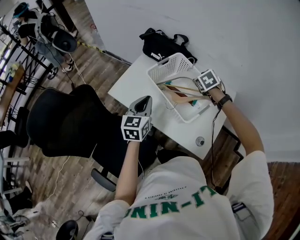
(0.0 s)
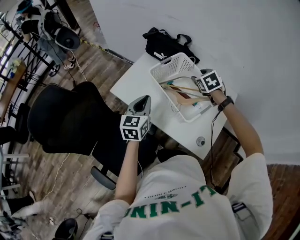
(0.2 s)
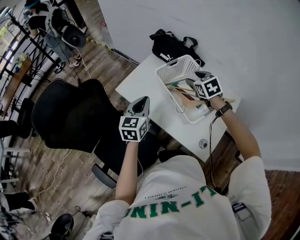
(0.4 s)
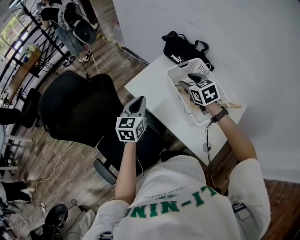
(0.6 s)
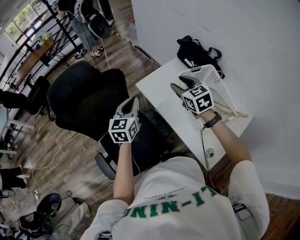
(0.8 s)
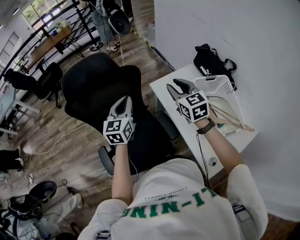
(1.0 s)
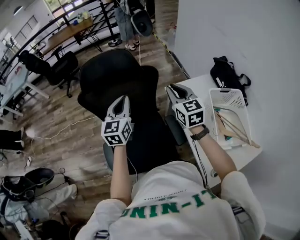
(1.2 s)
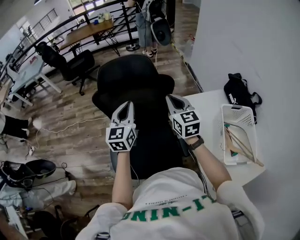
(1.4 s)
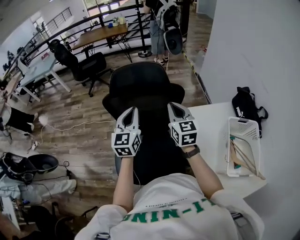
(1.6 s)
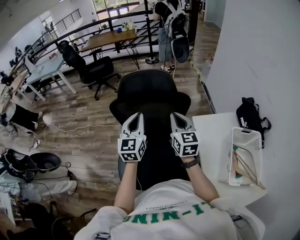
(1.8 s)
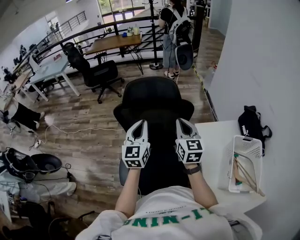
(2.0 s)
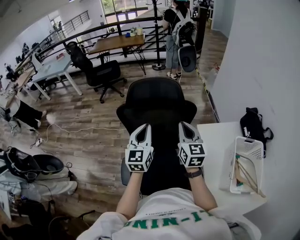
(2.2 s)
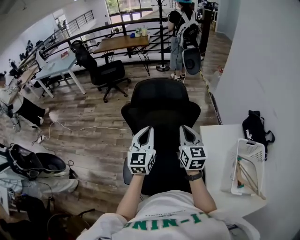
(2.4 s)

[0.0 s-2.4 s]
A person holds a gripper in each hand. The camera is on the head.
0.0 to 1.2 s: The left gripper moves about 40 cm, and swivels approximately 50 degrees. The right gripper shifts by some 50 cm, angles its fingers upward, by about 40 degrees, and closes its fingers.
1.2 to 2.4 s: The two grippers go roughly 10 cm to the left.

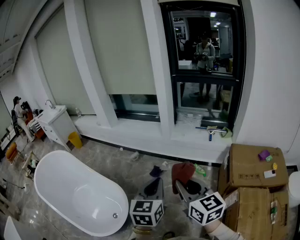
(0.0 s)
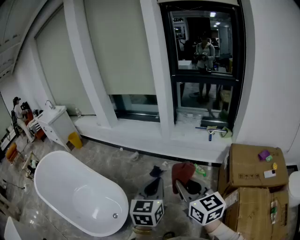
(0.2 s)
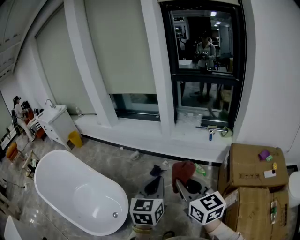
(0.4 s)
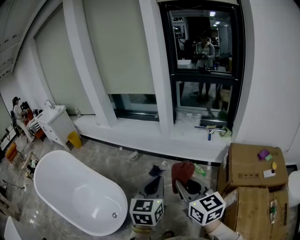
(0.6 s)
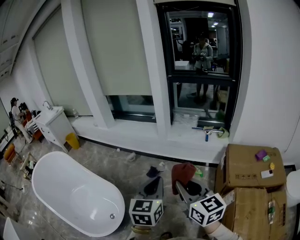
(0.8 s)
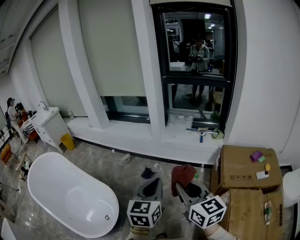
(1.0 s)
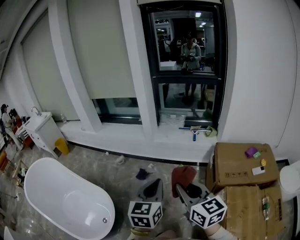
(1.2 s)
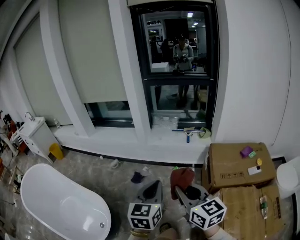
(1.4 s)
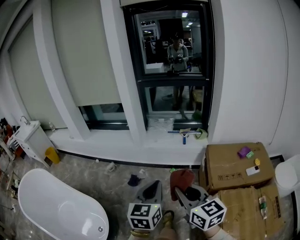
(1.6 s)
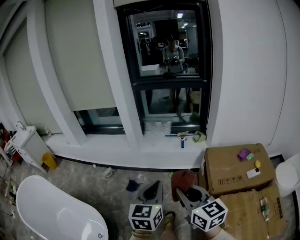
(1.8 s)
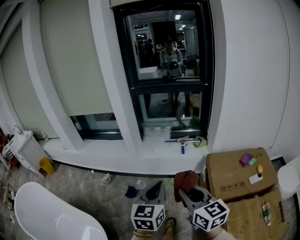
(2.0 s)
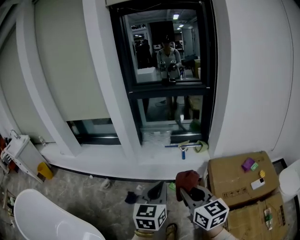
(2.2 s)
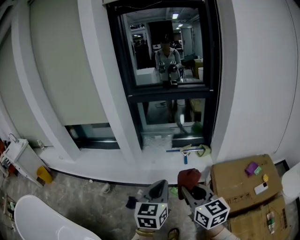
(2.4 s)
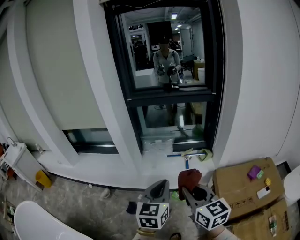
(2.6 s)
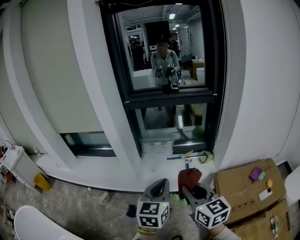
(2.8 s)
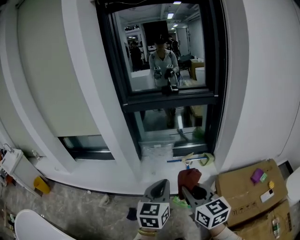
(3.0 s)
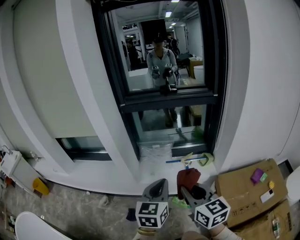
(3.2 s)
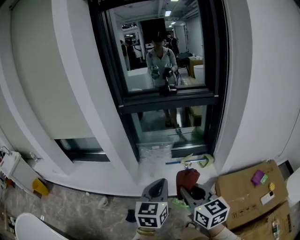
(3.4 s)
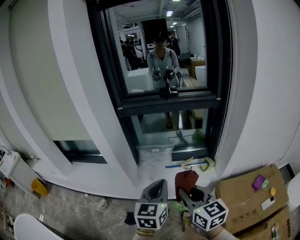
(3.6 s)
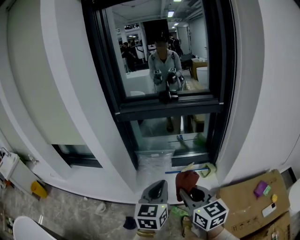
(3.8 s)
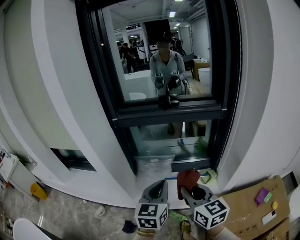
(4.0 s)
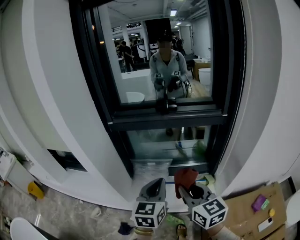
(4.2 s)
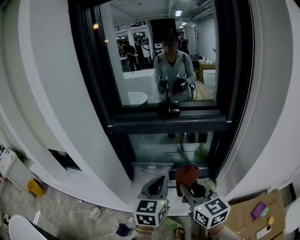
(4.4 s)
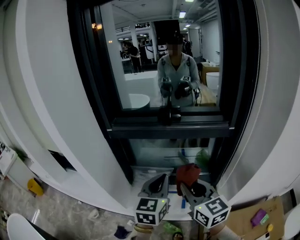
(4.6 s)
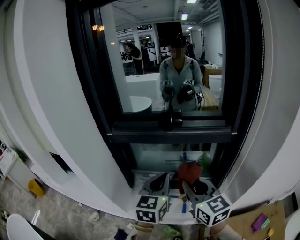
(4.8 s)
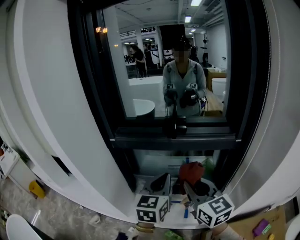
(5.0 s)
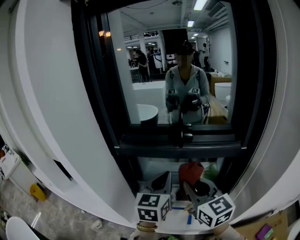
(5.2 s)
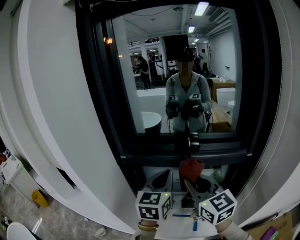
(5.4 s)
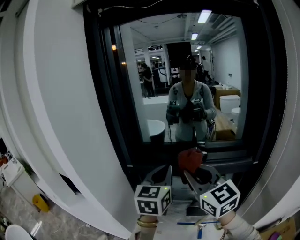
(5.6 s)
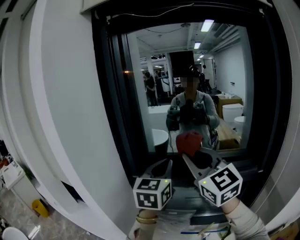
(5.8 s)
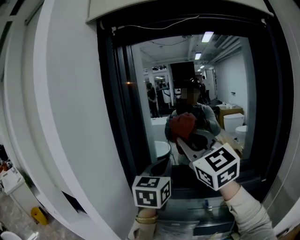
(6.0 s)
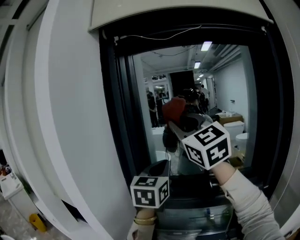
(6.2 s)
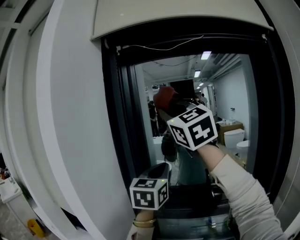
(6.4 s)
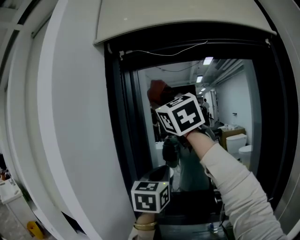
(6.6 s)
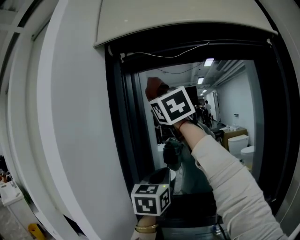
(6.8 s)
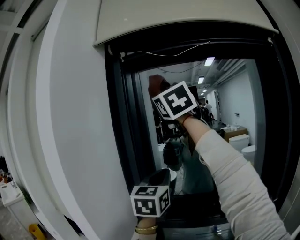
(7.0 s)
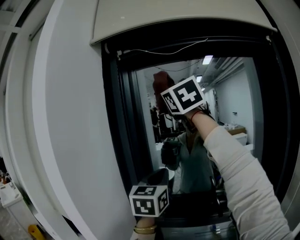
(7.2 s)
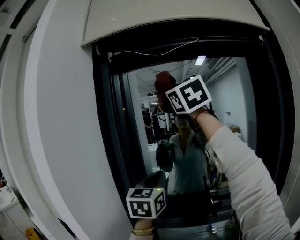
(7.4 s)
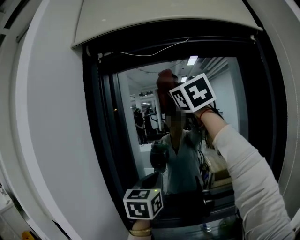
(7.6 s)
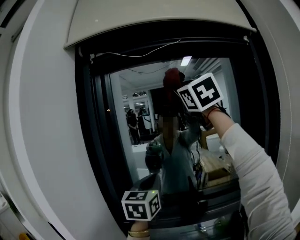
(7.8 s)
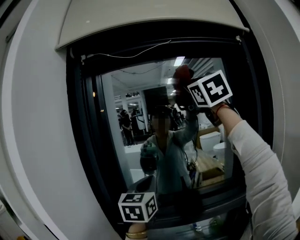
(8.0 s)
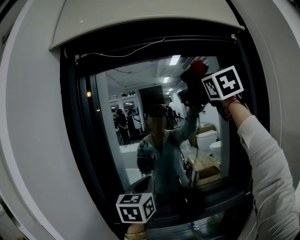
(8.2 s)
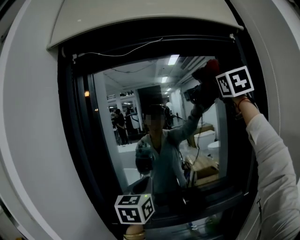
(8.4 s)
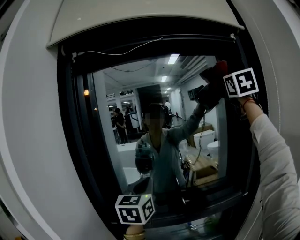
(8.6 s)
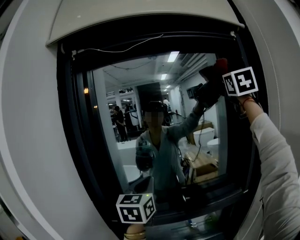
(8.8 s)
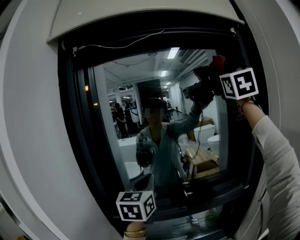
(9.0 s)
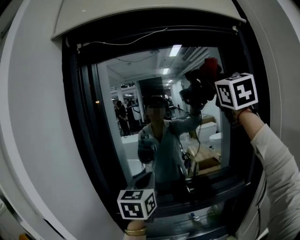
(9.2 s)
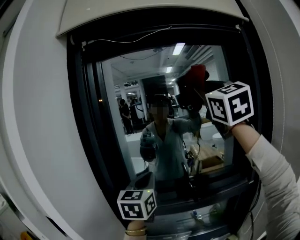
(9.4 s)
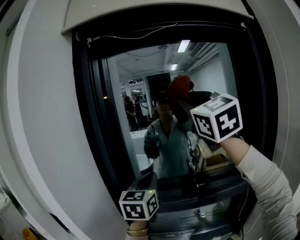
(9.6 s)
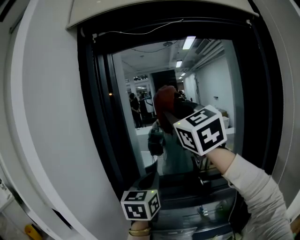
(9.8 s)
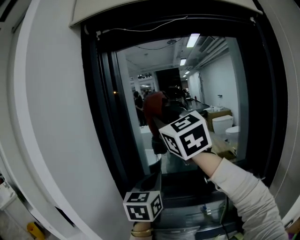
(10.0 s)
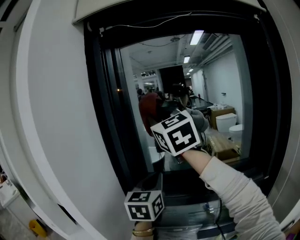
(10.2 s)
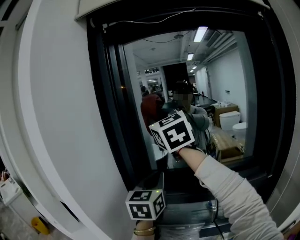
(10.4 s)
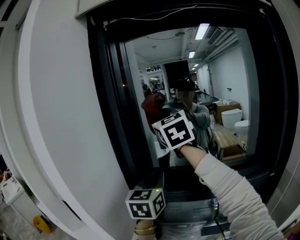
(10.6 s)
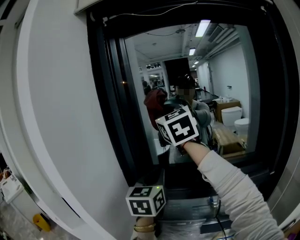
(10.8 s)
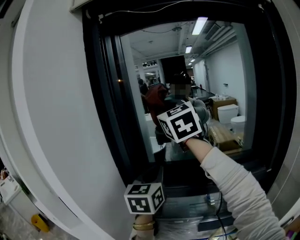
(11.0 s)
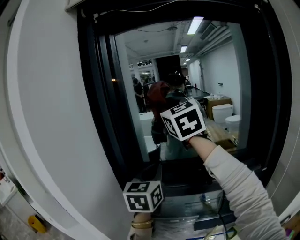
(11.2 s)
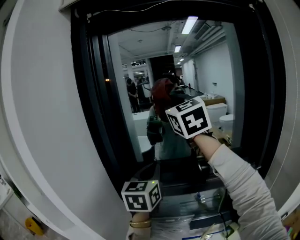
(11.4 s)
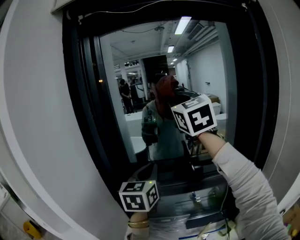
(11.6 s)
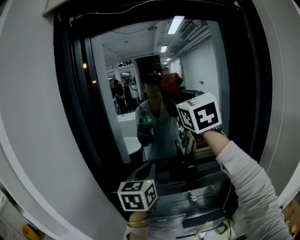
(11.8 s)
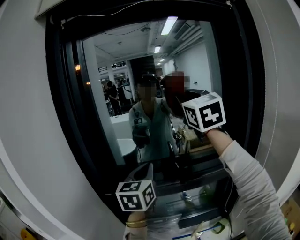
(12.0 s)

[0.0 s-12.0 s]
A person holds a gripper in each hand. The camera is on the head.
0.0 to 1.6 s: The grippers both shift to the right by about 15 cm.
1.6 to 3.0 s: Both grippers move forward, some 40 cm.
3.0 to 4.4 s: The grippers both shift forward by some 25 cm.
4.4 to 6.0 s: The right gripper travels upward and forward by approximately 40 cm, and rotates about 40 degrees, while the left gripper heads forward and upward, covering approximately 35 cm.
6.0 to 7.6 s: The left gripper shifts some 10 cm forward and upward. The right gripper travels upward and forward by roughly 25 cm.
7.6 to 9.0 s: The right gripper shifts about 30 cm to the right, and changes its angle by approximately 30 degrees; the left gripper ends up about 5 cm from where it was.
9.0 to 10.4 s: The right gripper is displaced to the left and downward by about 40 cm, and swivels some 40 degrees; the left gripper heads to the left and downward, covering approximately 10 cm.
10.4 to 12.0 s: The right gripper heads to the right, covering about 25 cm, and turns by approximately 20 degrees. The left gripper moves to the right, about 10 cm.

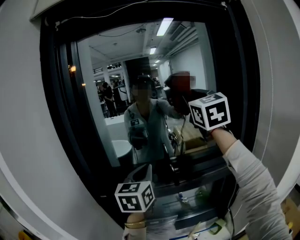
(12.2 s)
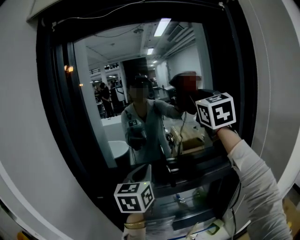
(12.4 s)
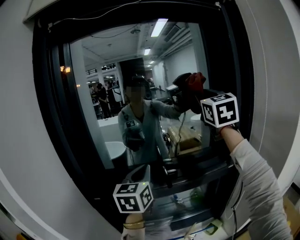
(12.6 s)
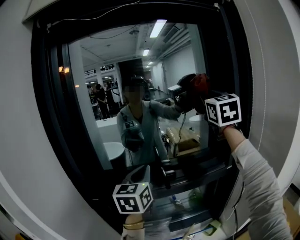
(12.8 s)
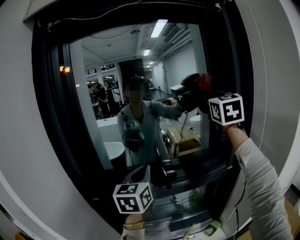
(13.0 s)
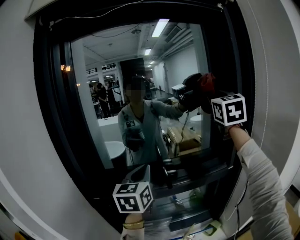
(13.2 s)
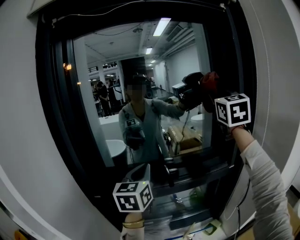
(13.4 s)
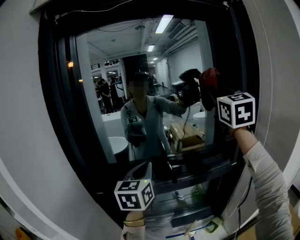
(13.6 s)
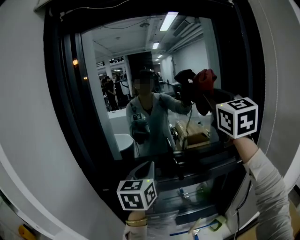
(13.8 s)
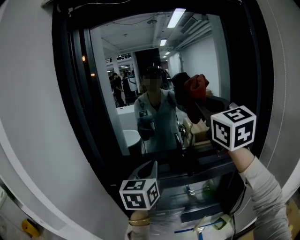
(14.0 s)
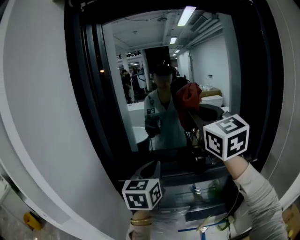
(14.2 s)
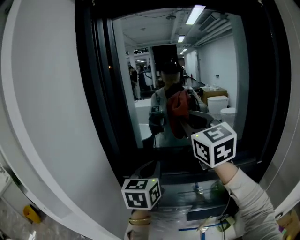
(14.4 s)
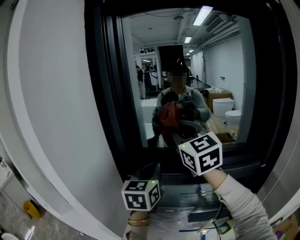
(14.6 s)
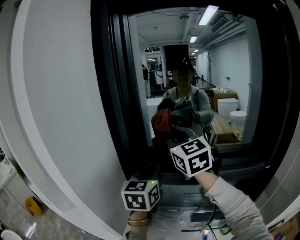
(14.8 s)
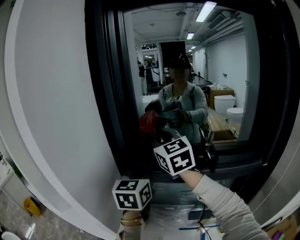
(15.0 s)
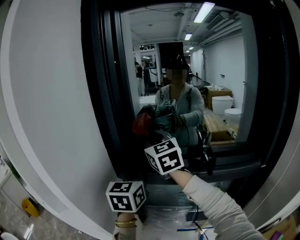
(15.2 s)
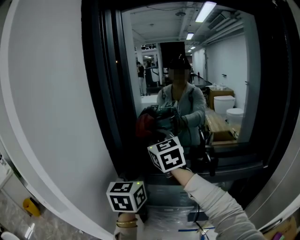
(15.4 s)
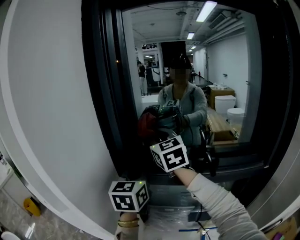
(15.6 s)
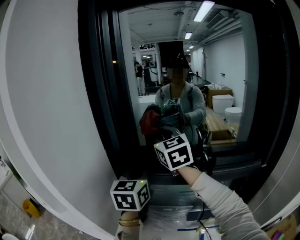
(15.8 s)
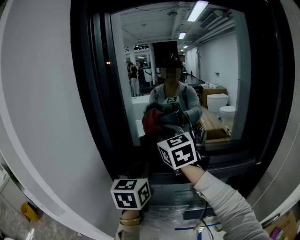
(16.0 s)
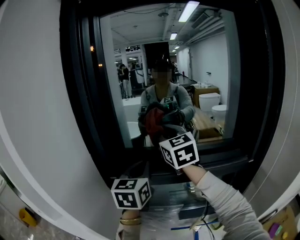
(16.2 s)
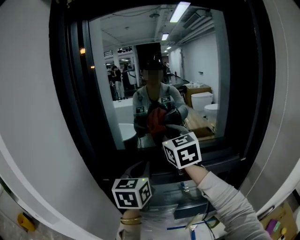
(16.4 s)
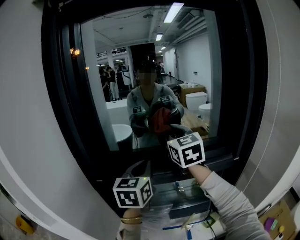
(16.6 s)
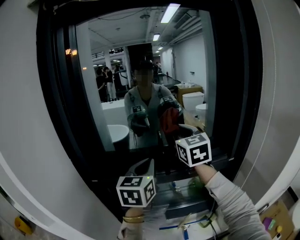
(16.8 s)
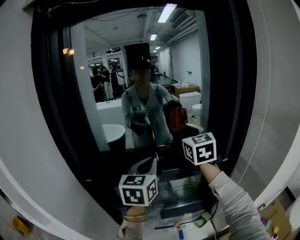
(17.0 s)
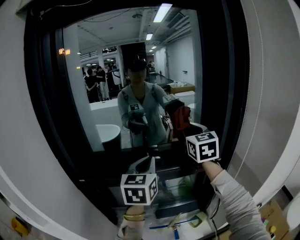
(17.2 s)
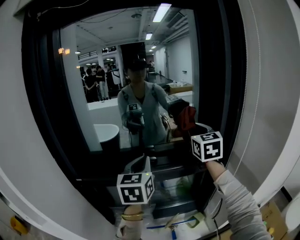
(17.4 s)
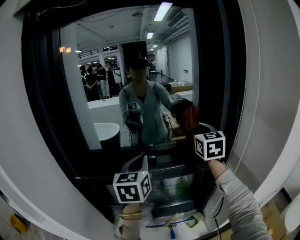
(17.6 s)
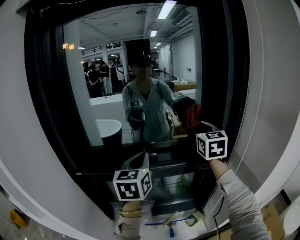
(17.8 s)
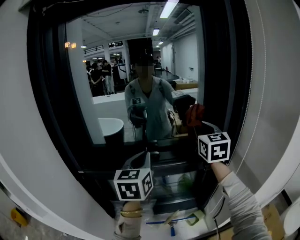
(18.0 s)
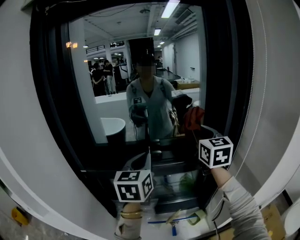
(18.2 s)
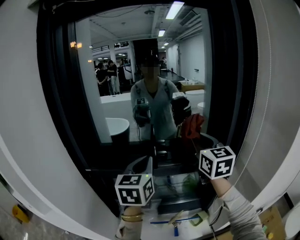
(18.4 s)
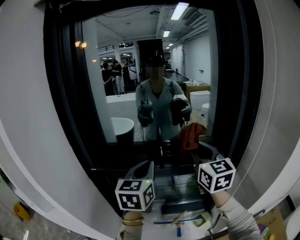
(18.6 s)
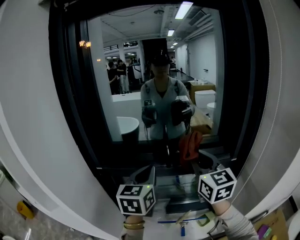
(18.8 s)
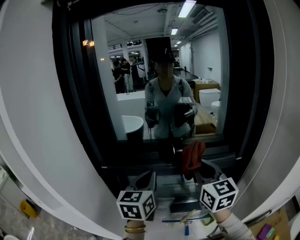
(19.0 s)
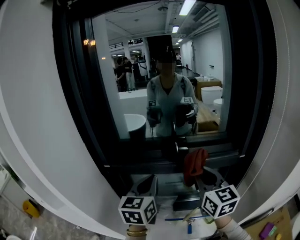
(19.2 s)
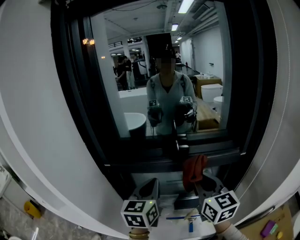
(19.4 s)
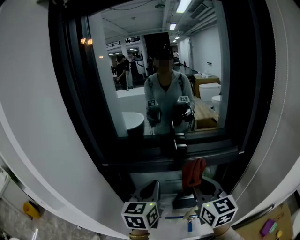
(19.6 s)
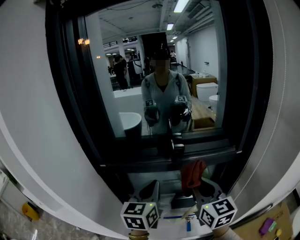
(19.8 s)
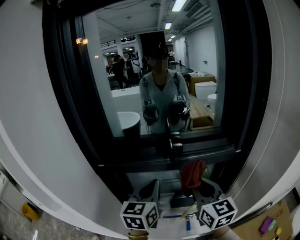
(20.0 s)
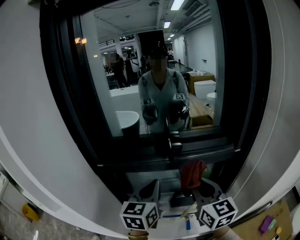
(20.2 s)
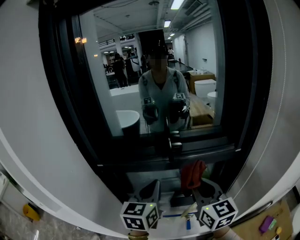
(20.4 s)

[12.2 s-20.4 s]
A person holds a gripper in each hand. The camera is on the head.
12.2 to 13.8 s: The right gripper reaches approximately 10 cm to the right, then returns.
13.8 to 15.4 s: The left gripper shifts roughly 15 cm to the left. The right gripper moves to the left and downward, approximately 40 cm, and turns by about 30 degrees.
15.4 to 17.2 s: The right gripper travels to the right by some 40 cm, and swivels approximately 30 degrees. The left gripper shifts approximately 25 cm to the right.
17.2 to 18.8 s: The left gripper heads to the left and backward, covering some 10 cm, while the right gripper moves backward, to the left and downward, some 15 cm.
18.8 to 20.4 s: The left gripper heads downward, covering about 5 cm. Meanwhile the right gripper goes roughly 10 cm downward and backward.

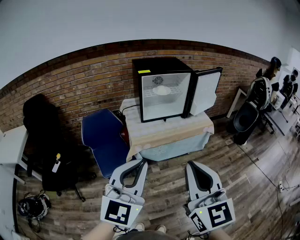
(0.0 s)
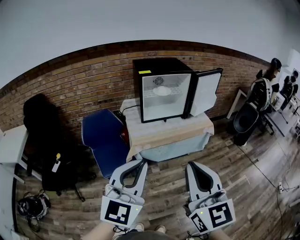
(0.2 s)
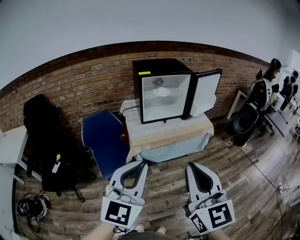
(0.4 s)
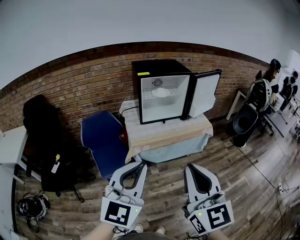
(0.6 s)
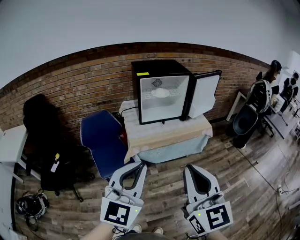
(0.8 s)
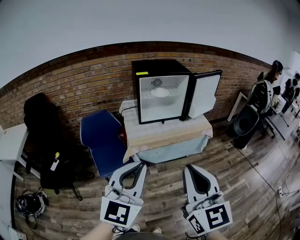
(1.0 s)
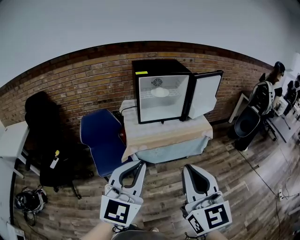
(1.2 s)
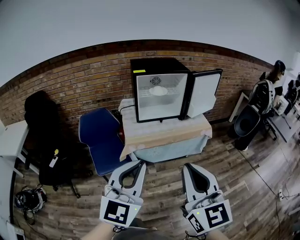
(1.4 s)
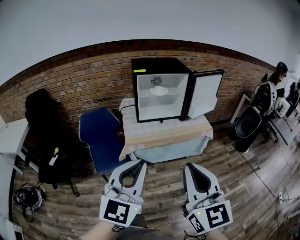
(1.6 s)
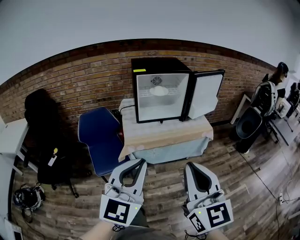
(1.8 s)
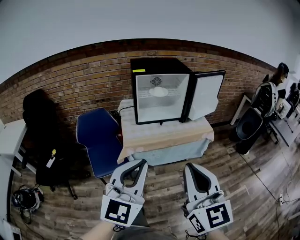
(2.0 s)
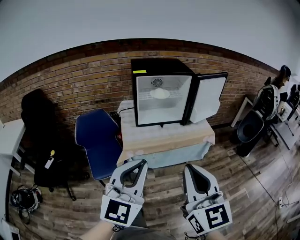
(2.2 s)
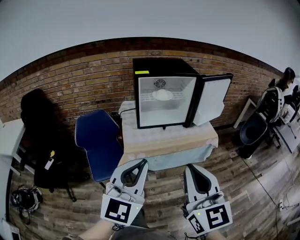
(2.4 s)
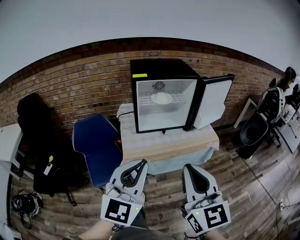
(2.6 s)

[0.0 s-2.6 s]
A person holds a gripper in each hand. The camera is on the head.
0.0 to 1.2 s: The grippers make only small movements.
1.2 to 2.6 s: Both grippers travel together forward, some 15 cm.
